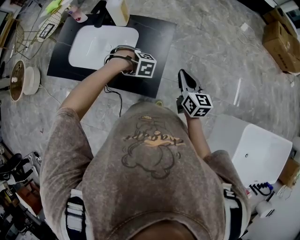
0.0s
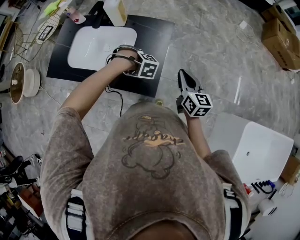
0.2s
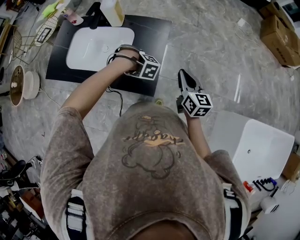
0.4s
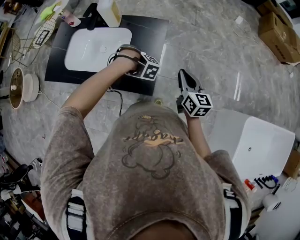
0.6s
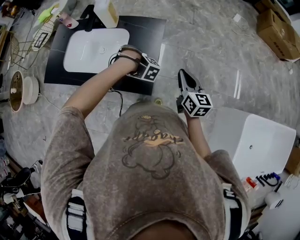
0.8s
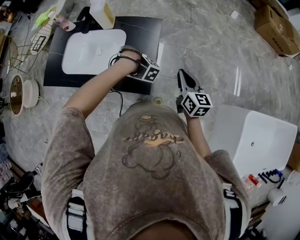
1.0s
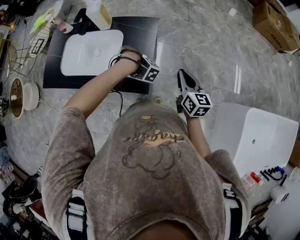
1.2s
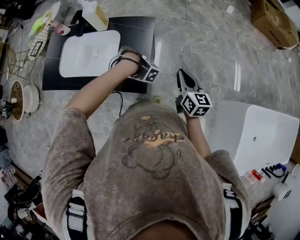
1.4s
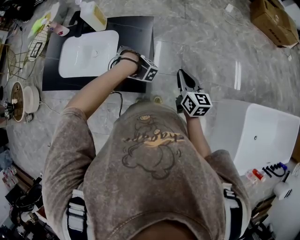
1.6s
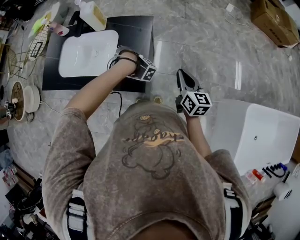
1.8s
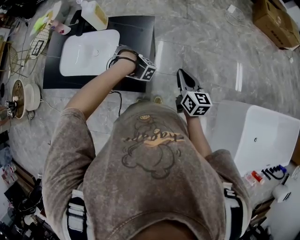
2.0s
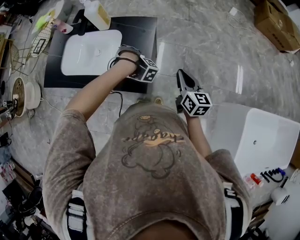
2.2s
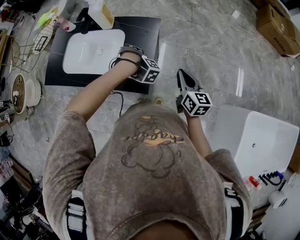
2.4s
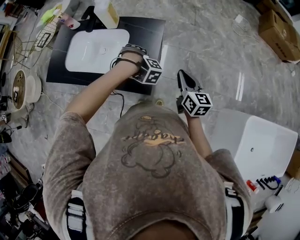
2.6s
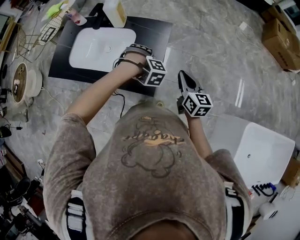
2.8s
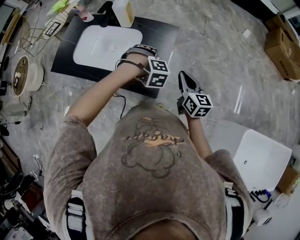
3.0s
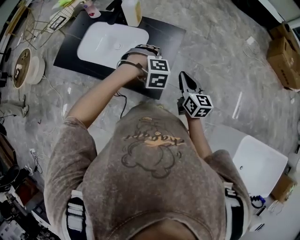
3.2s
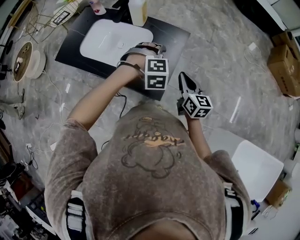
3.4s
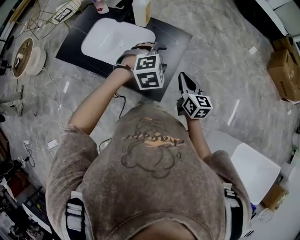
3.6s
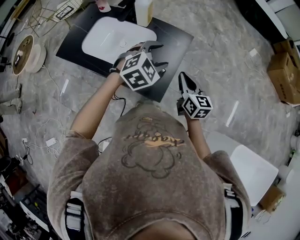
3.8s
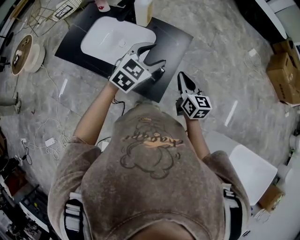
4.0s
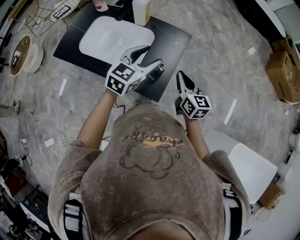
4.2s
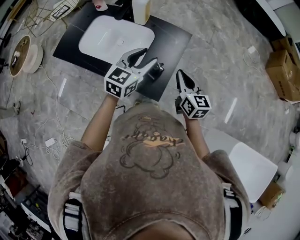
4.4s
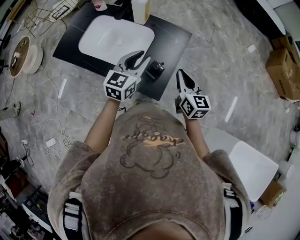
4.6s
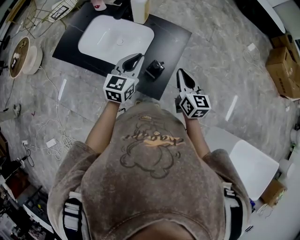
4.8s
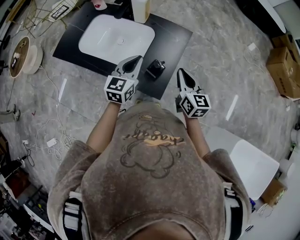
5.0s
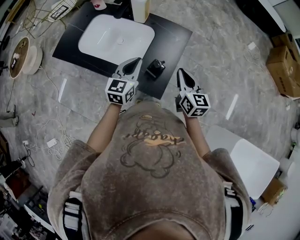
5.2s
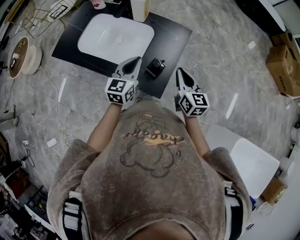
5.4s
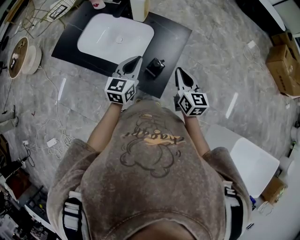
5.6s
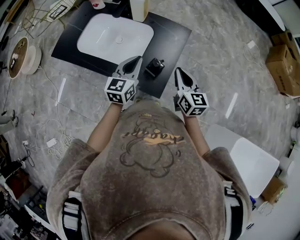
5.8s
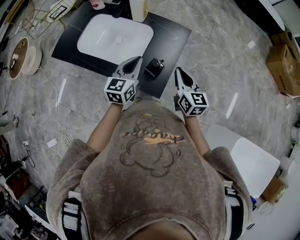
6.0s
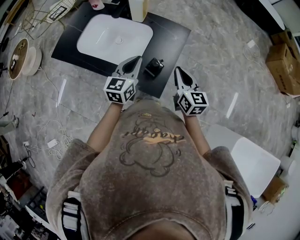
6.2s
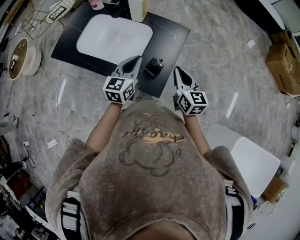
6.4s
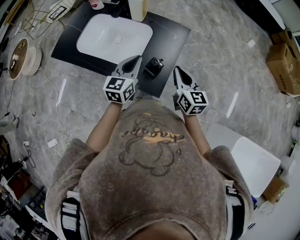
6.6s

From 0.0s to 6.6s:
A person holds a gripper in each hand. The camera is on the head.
From 0.0s to 1.6s: The left gripper swivels roughly 30 degrees. Meanwhile the right gripper moves some 10 cm.
From 1.6s to 3.2s: The left gripper is displaced upward by roughly 10 cm, and rotates about 50 degrees; the right gripper ends up about 10 cm from where it was.
From 3.2s to 5.0s: The left gripper moves to the left and upward, roughly 10 cm, tilts its fingers some 60 degrees upward, and closes up.
From 5.0s to 6.6s: The grippers stay close to where they were, moving slightly.

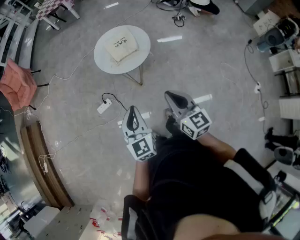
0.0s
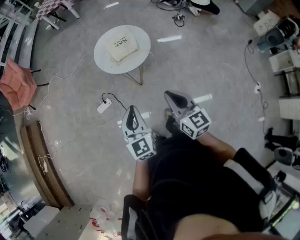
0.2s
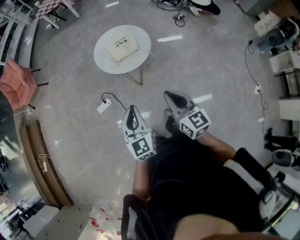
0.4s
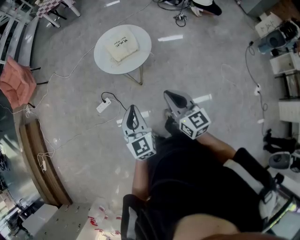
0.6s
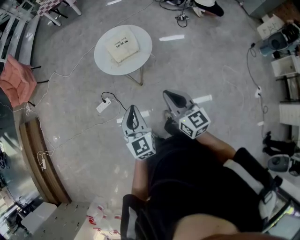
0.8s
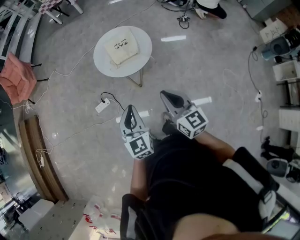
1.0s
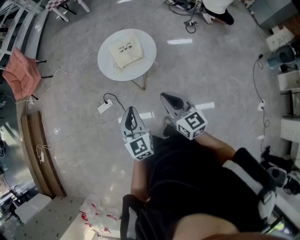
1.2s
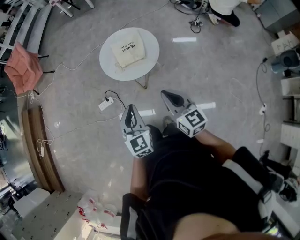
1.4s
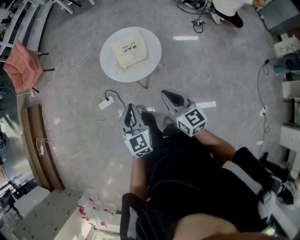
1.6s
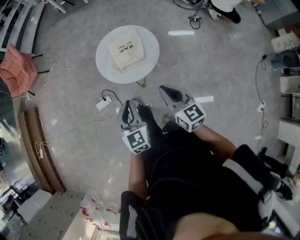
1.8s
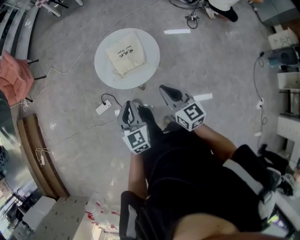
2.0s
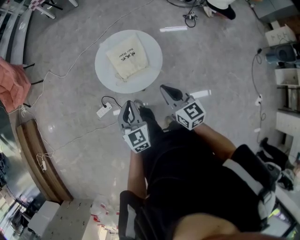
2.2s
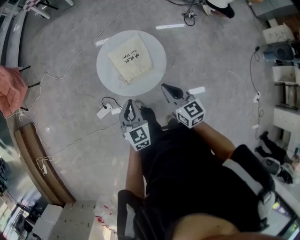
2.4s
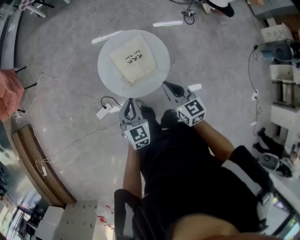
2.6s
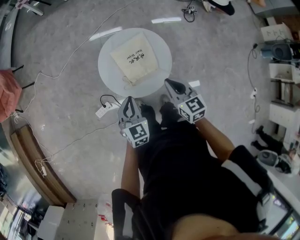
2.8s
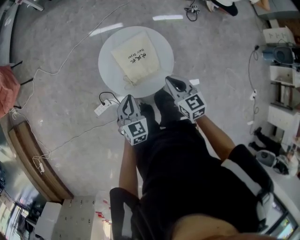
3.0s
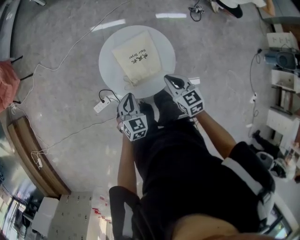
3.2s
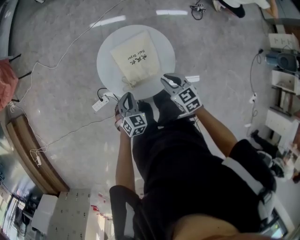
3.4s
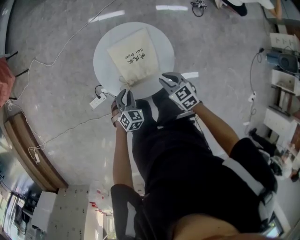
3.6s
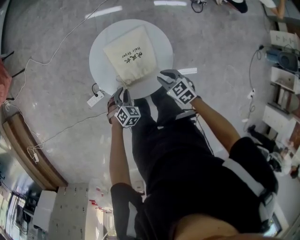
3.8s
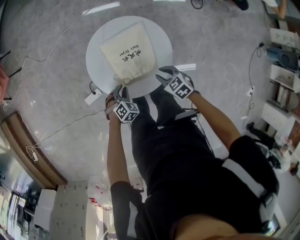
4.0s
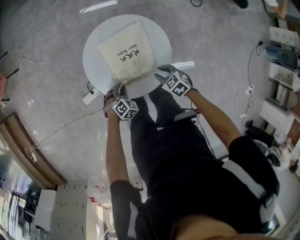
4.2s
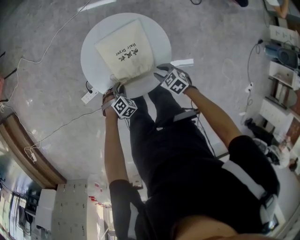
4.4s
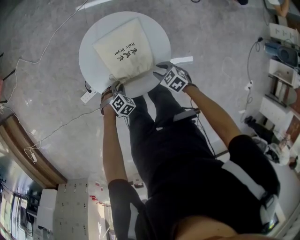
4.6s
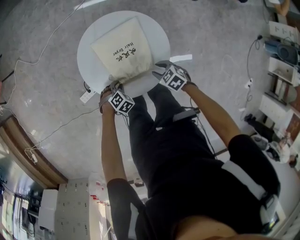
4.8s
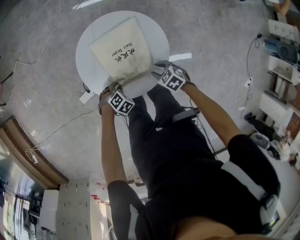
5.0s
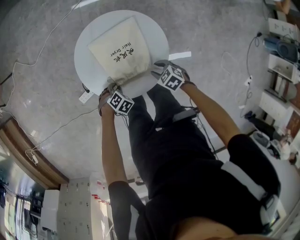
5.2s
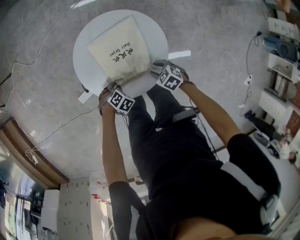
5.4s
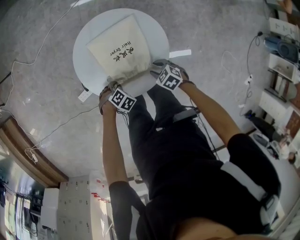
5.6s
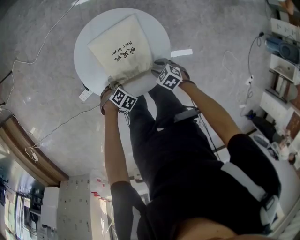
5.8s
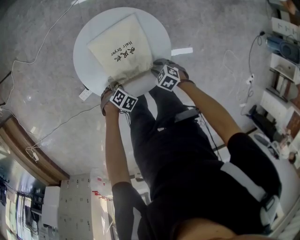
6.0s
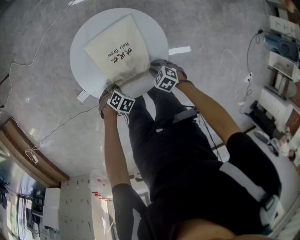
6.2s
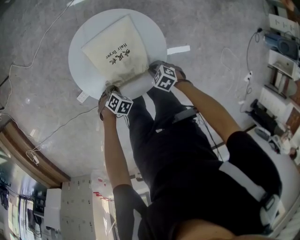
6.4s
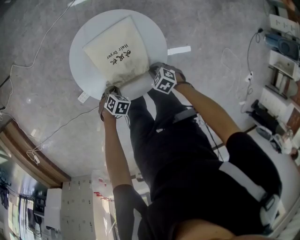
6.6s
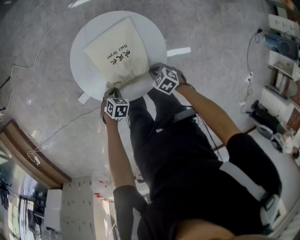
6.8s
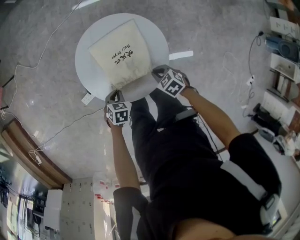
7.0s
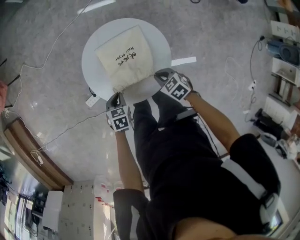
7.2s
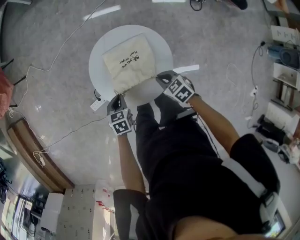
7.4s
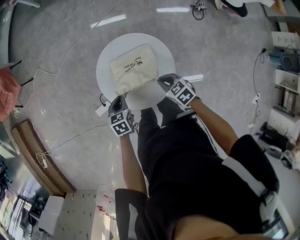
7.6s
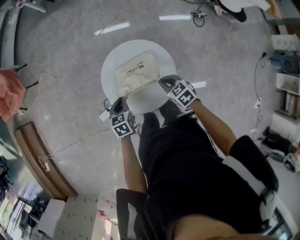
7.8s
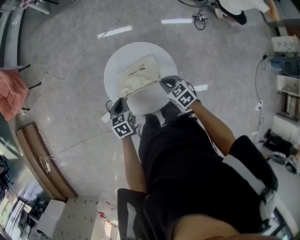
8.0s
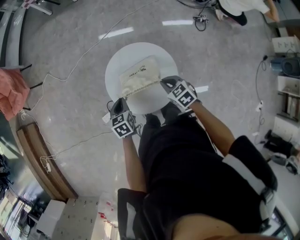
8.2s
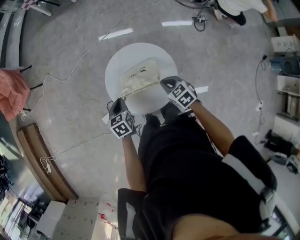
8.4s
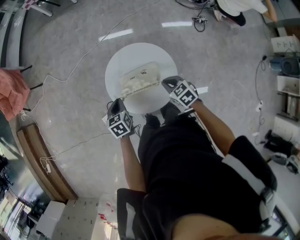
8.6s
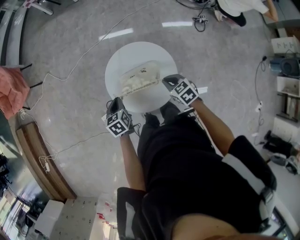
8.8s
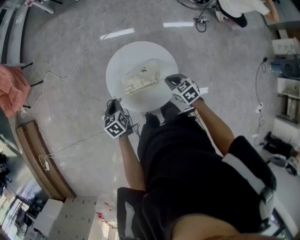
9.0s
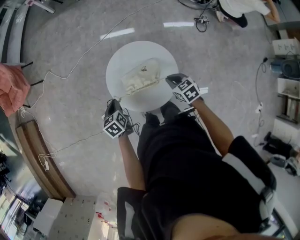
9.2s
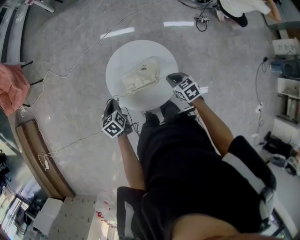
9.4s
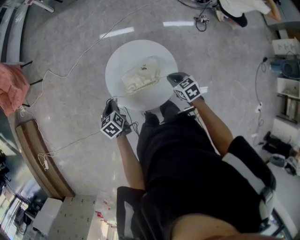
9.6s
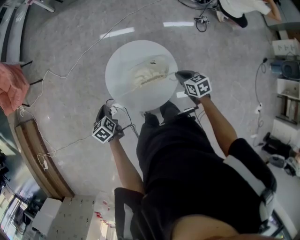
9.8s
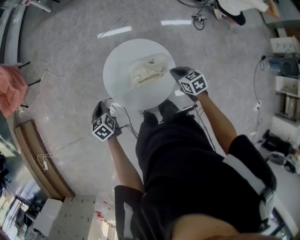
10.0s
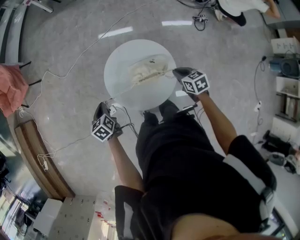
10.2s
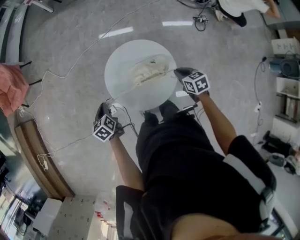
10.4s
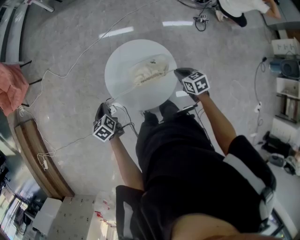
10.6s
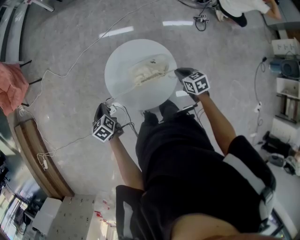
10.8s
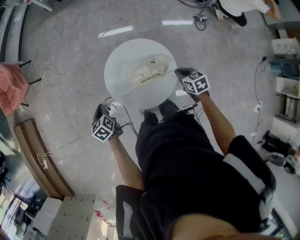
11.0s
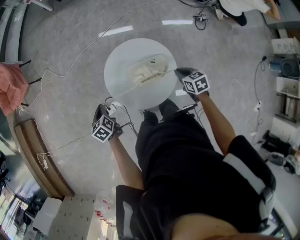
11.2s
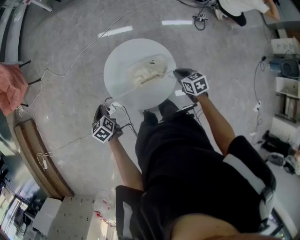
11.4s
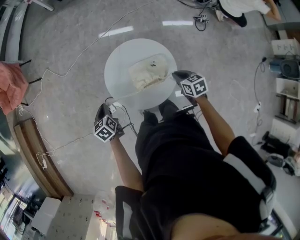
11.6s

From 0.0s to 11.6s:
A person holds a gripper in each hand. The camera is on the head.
From 0.0s to 1.4s: The two grippers go some 15 cm forward and to the right.
From 1.4s to 2.8s: The two grippers go about 30 cm forward and downward. The left gripper turns by some 20 degrees.
From 2.8s to 4.4s: The grippers both shift downward by roughly 30 cm. The right gripper angles its fingers downward, by approximately 40 degrees, and opens its fingers; the left gripper tips its fingers downward by about 40 degrees.
From 4.4s to 5.8s: The grippers stay close to where they were, moving slightly.
From 5.8s to 7.2s: Both grippers move upward, about 10 cm. The left gripper rotates around the line of its fingers by some 40 degrees, counterclockwise from behind; the right gripper closes.
From 7.2s to 8.8s: The left gripper moves upward and forward, about 15 cm, and turns by about 30 degrees. The right gripper travels upward by some 10 cm.
From 8.8s to 10.2s: The right gripper is displaced to the right by roughly 5 cm. The left gripper heads to the left, covering approximately 10 cm.
From 10.2s to 11.6s: The grippers move only a little.

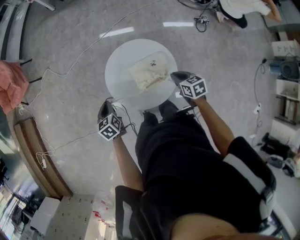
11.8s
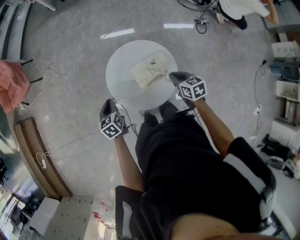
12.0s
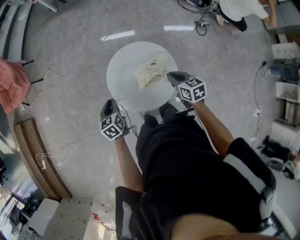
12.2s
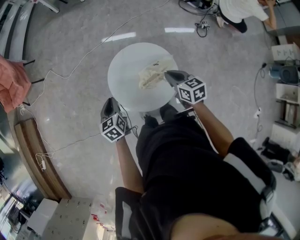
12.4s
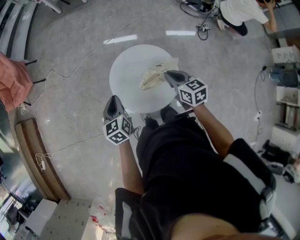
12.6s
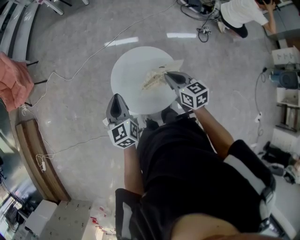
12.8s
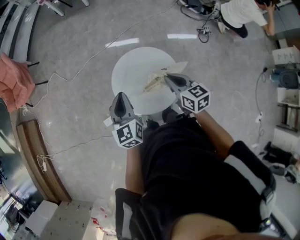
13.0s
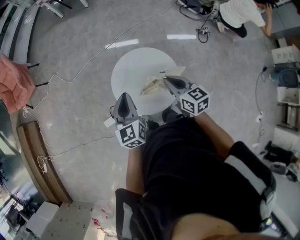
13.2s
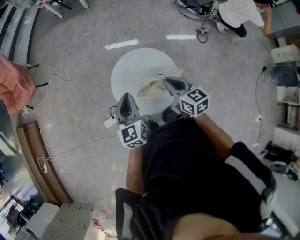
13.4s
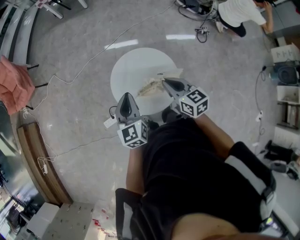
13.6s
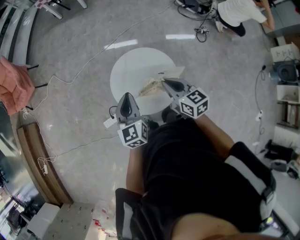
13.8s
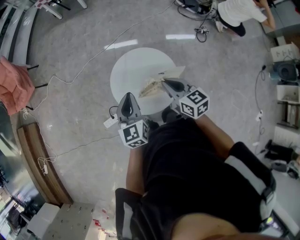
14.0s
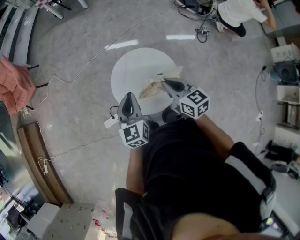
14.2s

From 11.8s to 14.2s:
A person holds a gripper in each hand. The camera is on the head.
From 11.8s to 13.0s: The right gripper goes roughly 15 cm upward and to the left, and turns by roughly 20 degrees. Meanwhile the left gripper moves upward and to the right, roughly 20 cm, and turns by some 30 degrees.
From 13.0s to 14.2s: The grippers stay close to where they were, moving slightly.

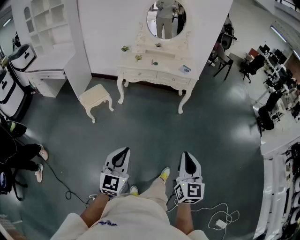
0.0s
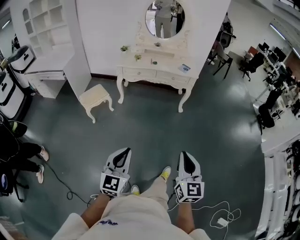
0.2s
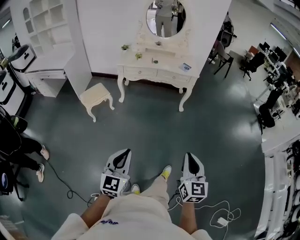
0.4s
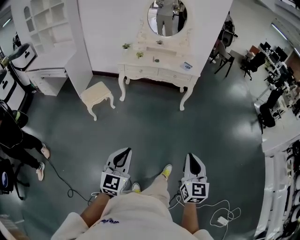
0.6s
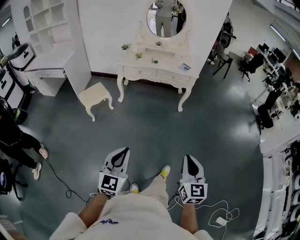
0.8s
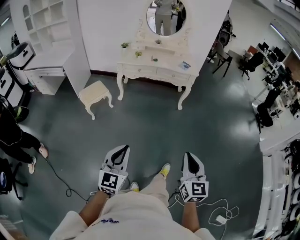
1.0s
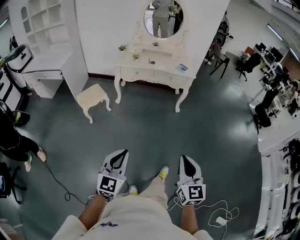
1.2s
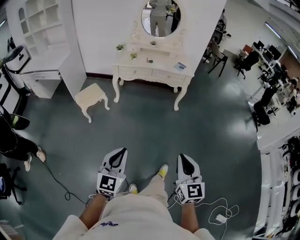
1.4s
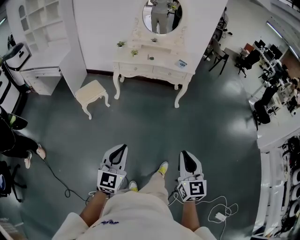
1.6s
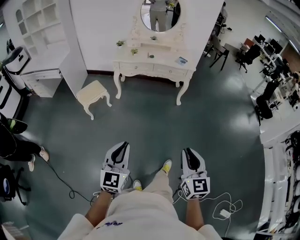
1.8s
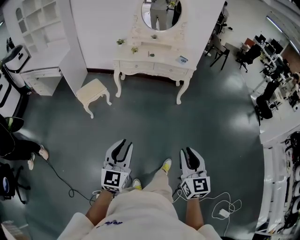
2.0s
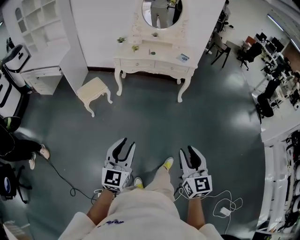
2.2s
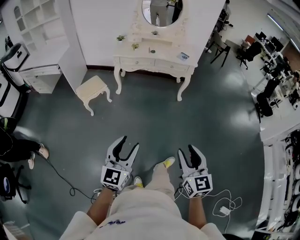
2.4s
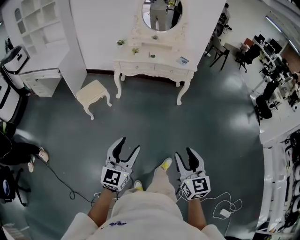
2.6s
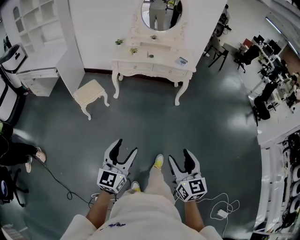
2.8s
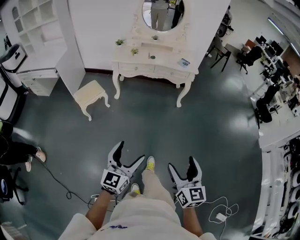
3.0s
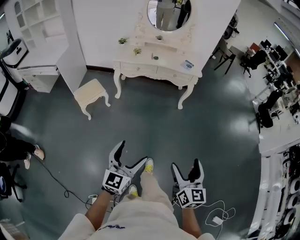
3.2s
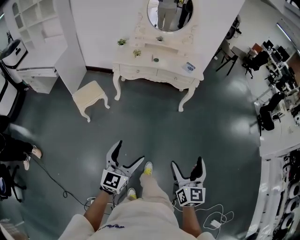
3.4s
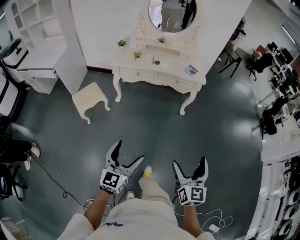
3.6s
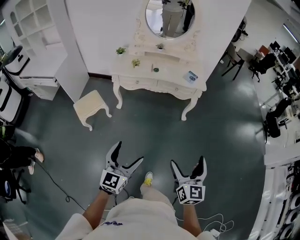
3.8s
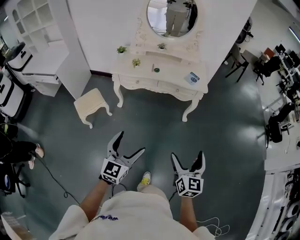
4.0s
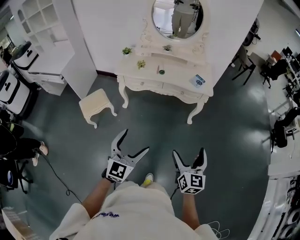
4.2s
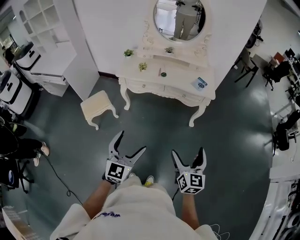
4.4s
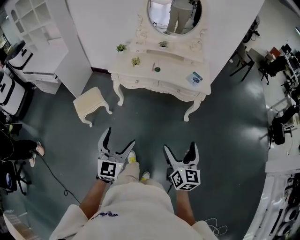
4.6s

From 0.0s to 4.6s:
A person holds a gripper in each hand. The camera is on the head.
From 0.0s to 1.6s: The grippers move only a little.
From 1.6s to 3.0s: The left gripper is displaced forward by about 5 cm, and opens its fingers, while the right gripper shifts by approximately 5 cm, and opens its fingers.
From 3.0s to 4.6s: The grippers both shift forward by roughly 40 cm. The left gripper swivels approximately 30 degrees.
